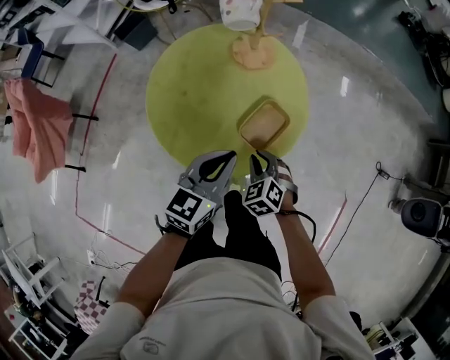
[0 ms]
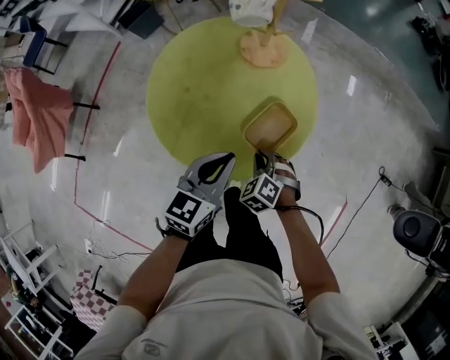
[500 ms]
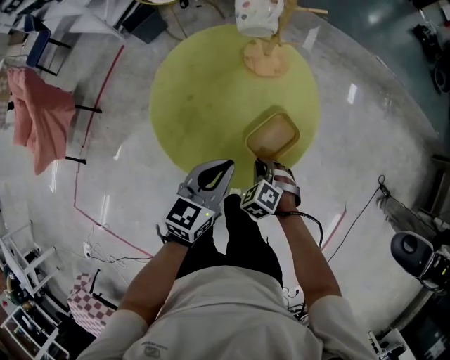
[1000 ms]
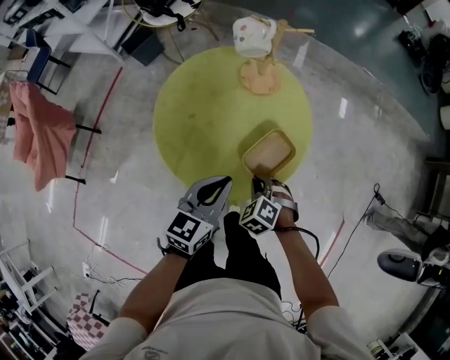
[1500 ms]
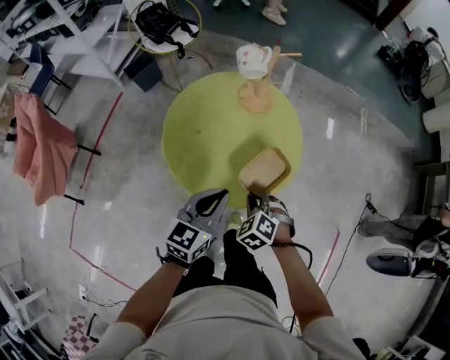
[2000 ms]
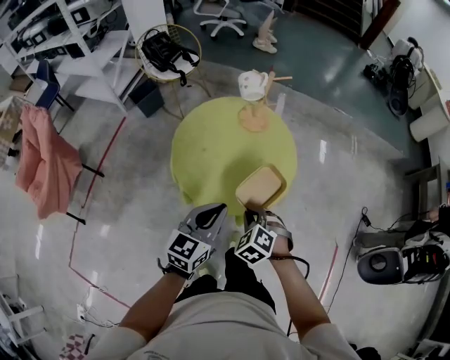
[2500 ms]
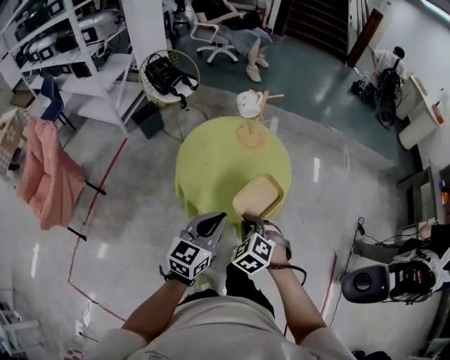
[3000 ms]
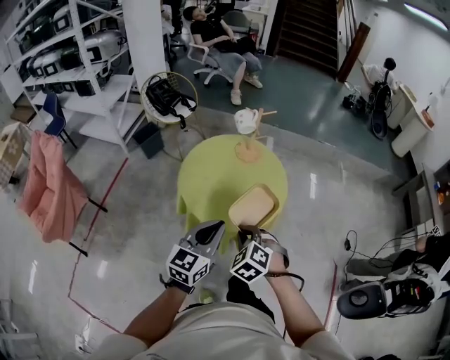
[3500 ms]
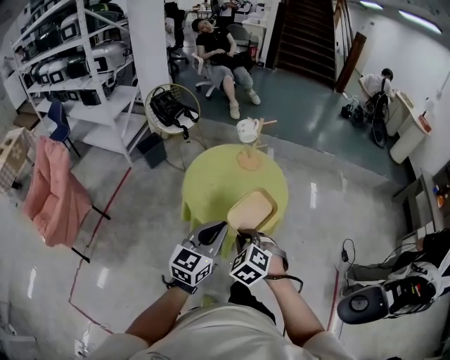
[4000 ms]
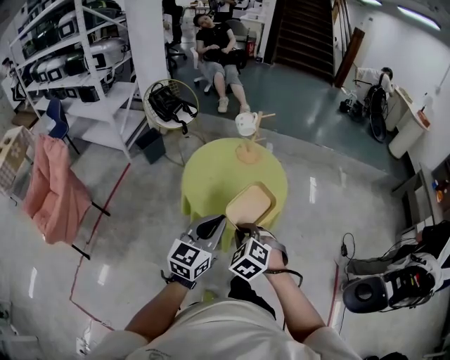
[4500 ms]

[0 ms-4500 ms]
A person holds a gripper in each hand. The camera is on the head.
0 ms to 2000 ms: The right gripper moves upward, roughly 5 cm; the left gripper is displaced to the left by roughly 5 cm.
2000 ms to 4500 ms: The right gripper is displaced upward, backward and to the left by approximately 25 cm, while the left gripper goes roughly 20 cm backward and upward.

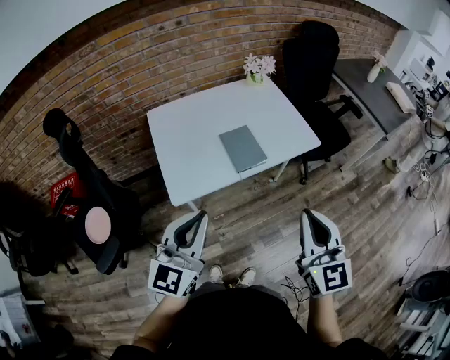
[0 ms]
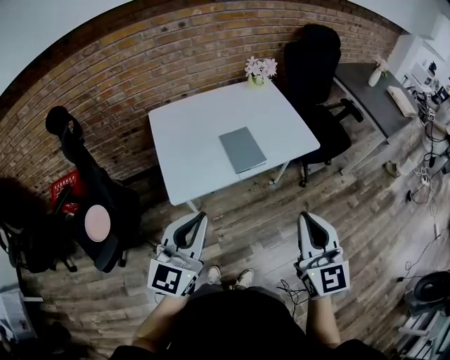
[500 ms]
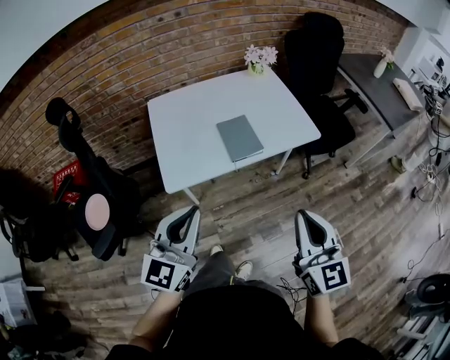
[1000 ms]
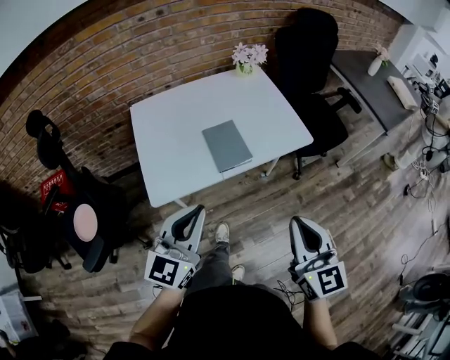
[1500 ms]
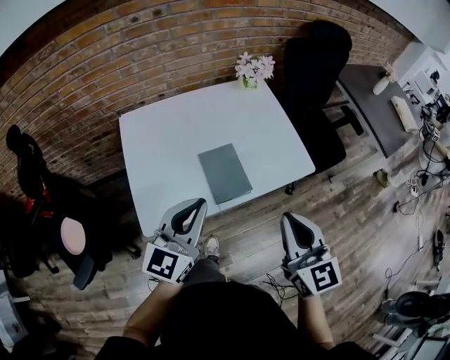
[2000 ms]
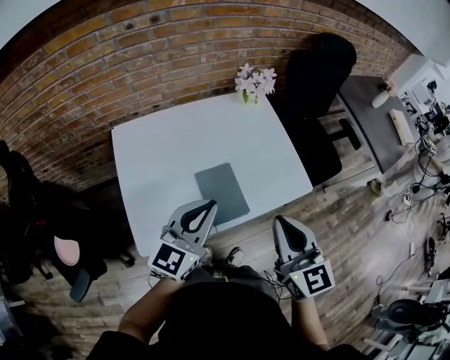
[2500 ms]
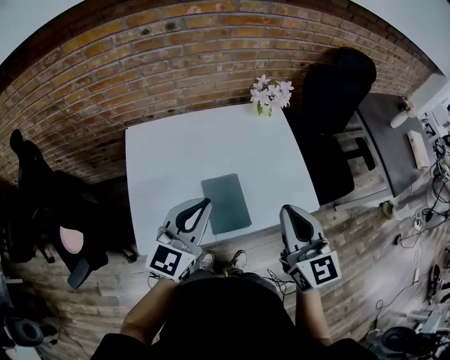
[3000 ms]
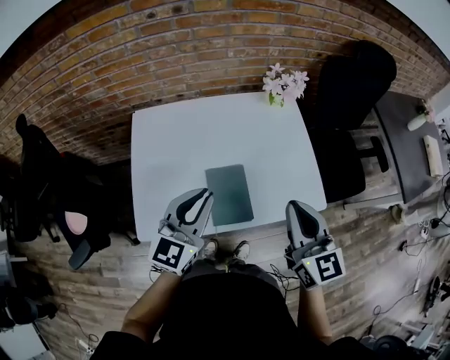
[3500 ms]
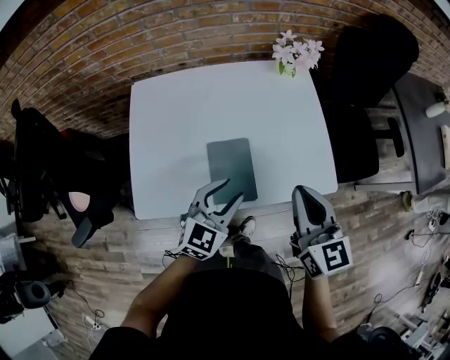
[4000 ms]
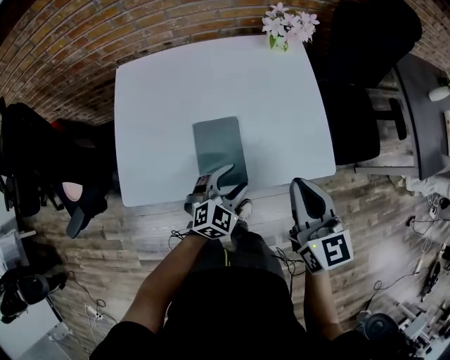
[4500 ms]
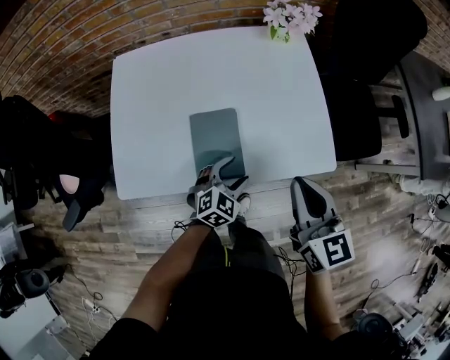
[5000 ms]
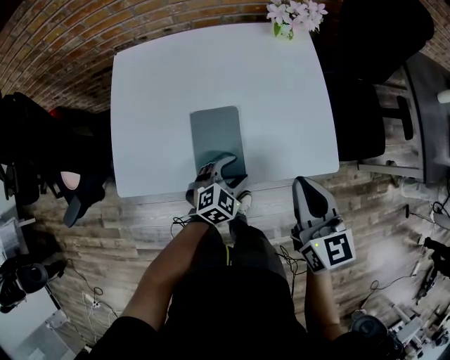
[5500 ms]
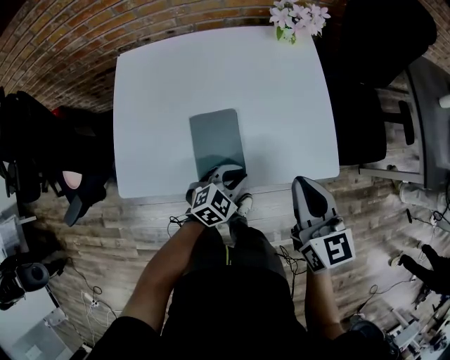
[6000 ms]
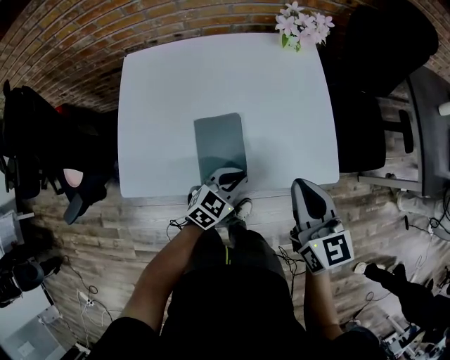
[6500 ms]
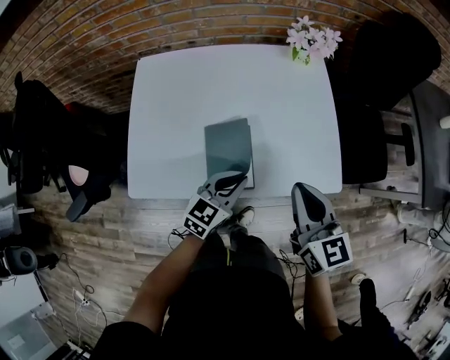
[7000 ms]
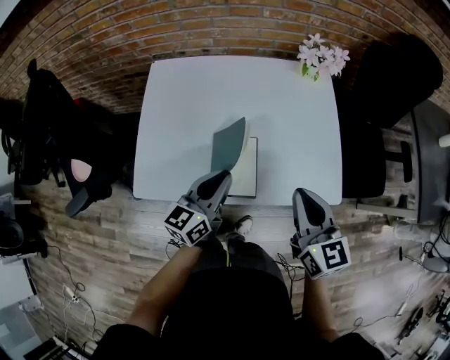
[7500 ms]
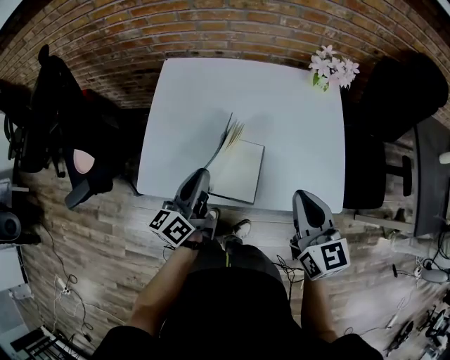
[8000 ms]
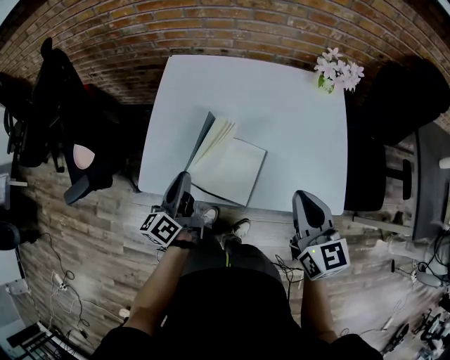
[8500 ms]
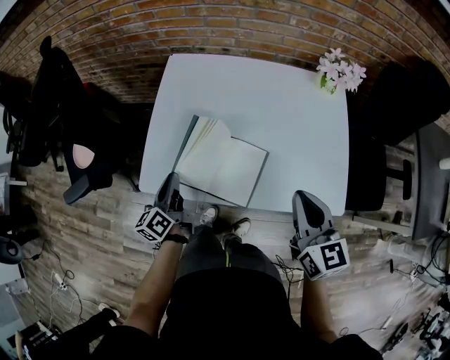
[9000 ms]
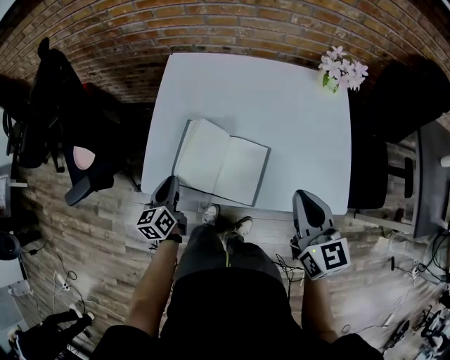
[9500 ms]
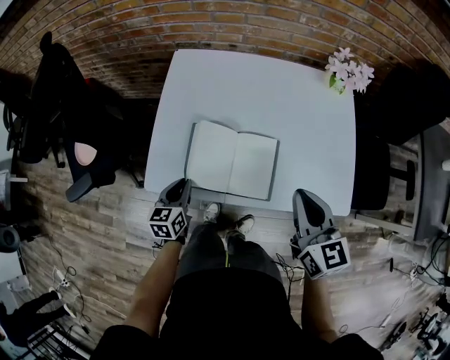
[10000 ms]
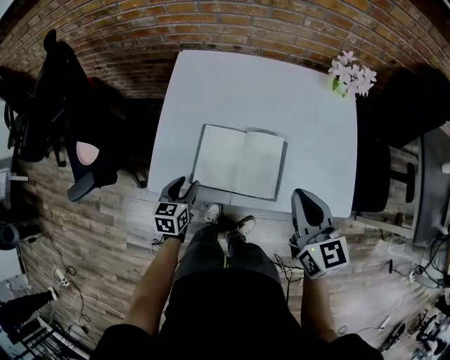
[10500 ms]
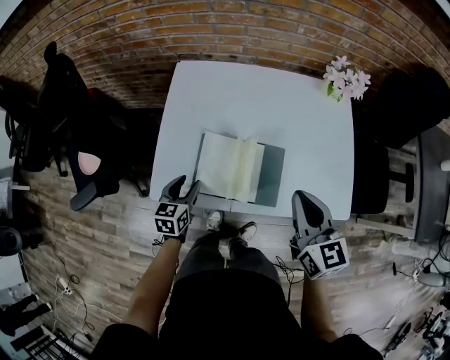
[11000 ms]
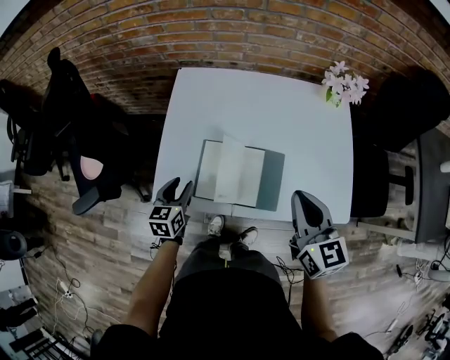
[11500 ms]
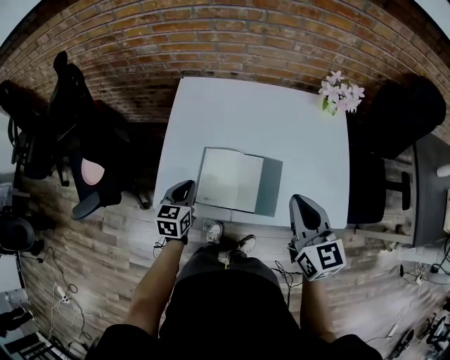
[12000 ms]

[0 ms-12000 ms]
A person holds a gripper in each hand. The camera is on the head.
0 ms to 2000 ms: Both grippers move forward, approximately 20 cm.
2000 ms to 4000 ms: The right gripper moves forward, roughly 20 cm. The left gripper moves downward, forward and to the right, about 20 cm, turns by approximately 20 degrees, and opens.
4000 ms to 6000 ms: The left gripper shifts roughly 20 cm downward and to the right, swivels approximately 20 degrees, and opens and closes again, while the right gripper is displaced downward by some 5 cm.
6000 ms to 8000 ms: The left gripper changes place by roughly 25 cm, and tips its fingers upward by some 40 degrees. Meanwhile the right gripper shifts by some 5 cm.
8000 ms to 10000 ms: The left gripper heads downward and to the left, covering about 20 cm, and tilts its fingers approximately 30 degrees downward; the right gripper changes place by some 5 cm.
10000 ms to 12000 ms: The left gripper moves forward and upward, some 10 cm, and opens, then closes once more.

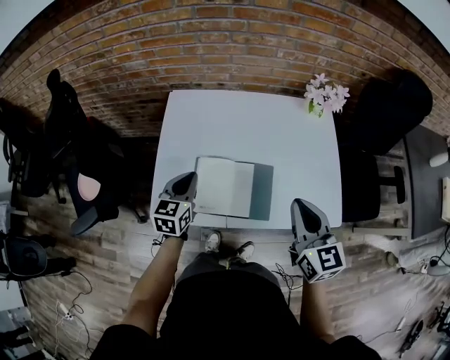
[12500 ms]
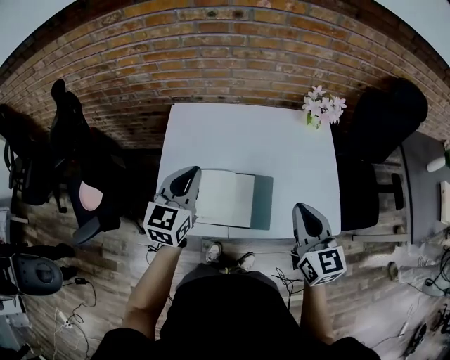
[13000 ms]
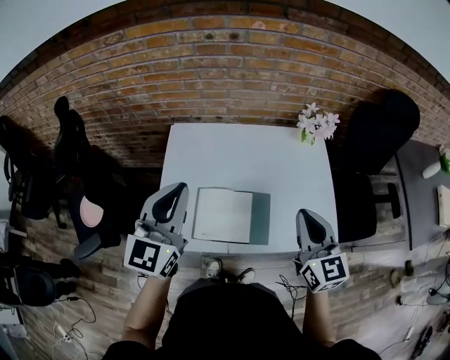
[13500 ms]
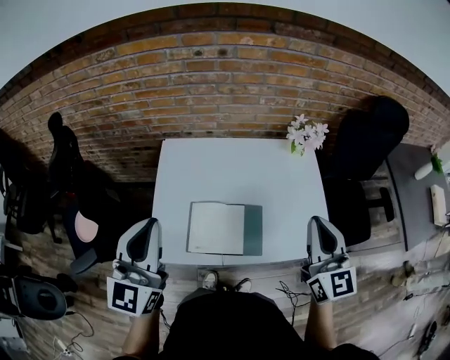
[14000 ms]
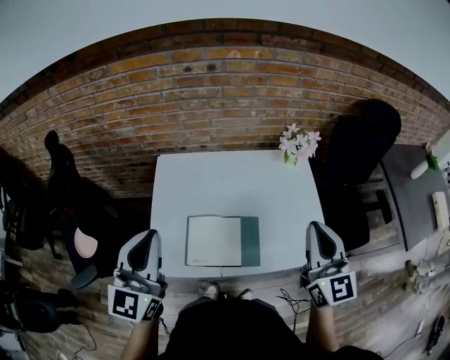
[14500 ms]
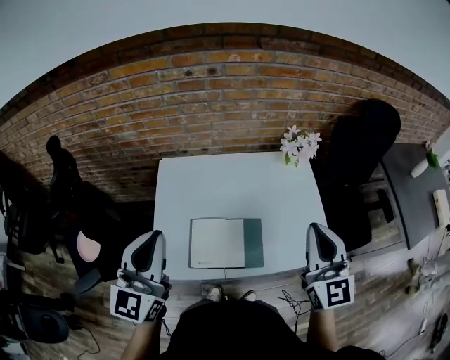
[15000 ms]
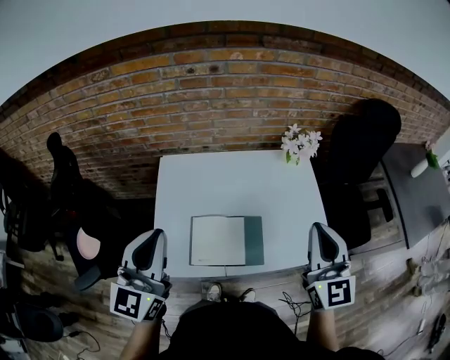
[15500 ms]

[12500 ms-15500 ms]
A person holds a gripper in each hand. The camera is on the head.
12500 ms to 14000 ms: The left gripper heads upward, covering approximately 30 cm, and tips its fingers upward by about 30 degrees. Meanwhile the right gripper is displaced upward by some 10 cm.
14000 ms to 15500 ms: The grippers make only small movements.

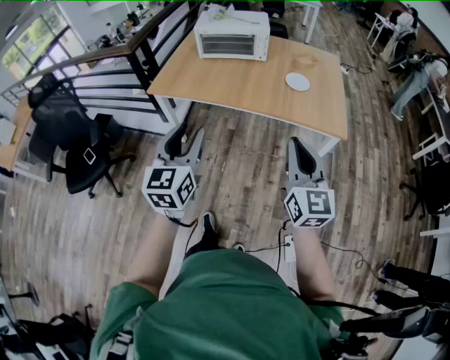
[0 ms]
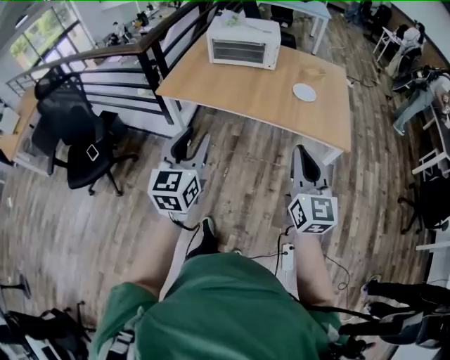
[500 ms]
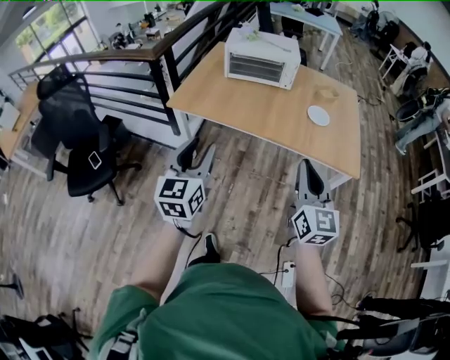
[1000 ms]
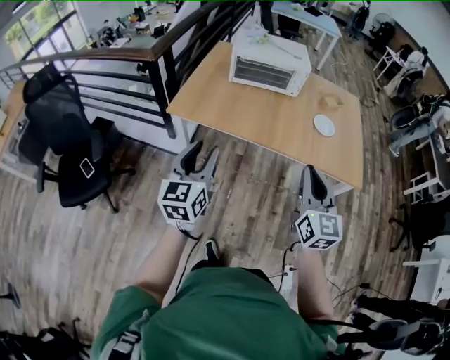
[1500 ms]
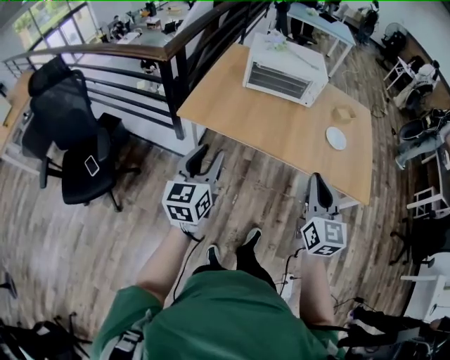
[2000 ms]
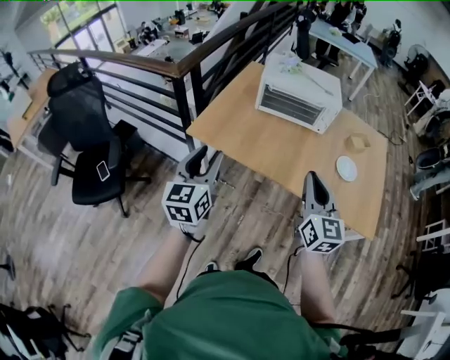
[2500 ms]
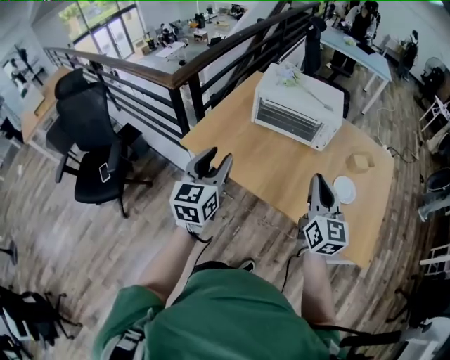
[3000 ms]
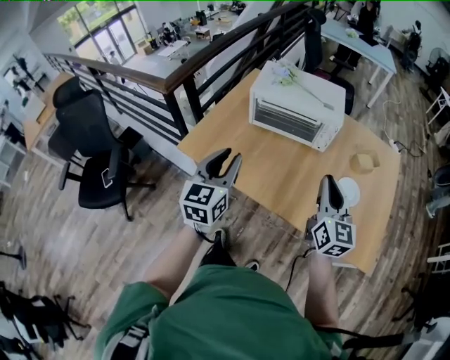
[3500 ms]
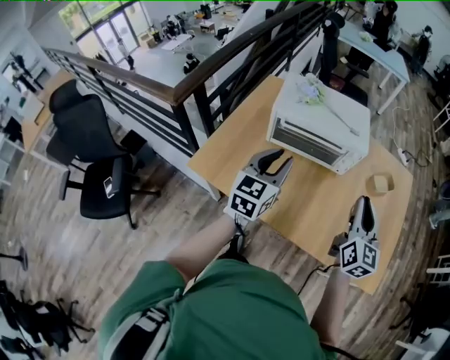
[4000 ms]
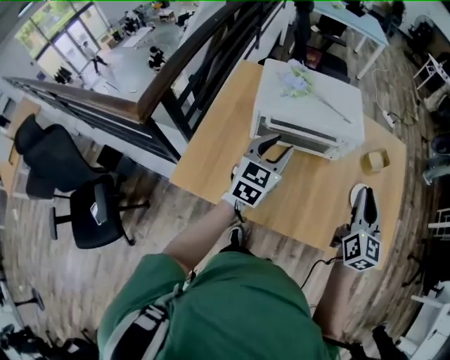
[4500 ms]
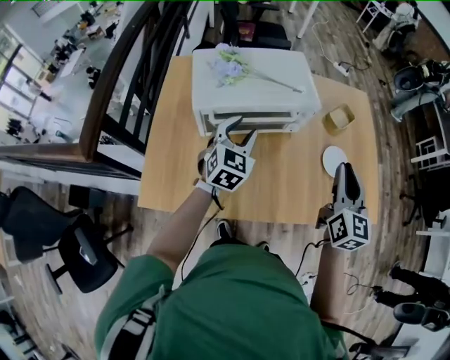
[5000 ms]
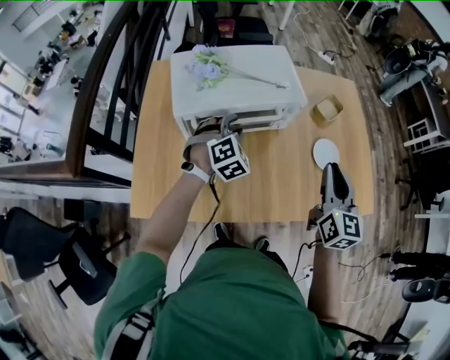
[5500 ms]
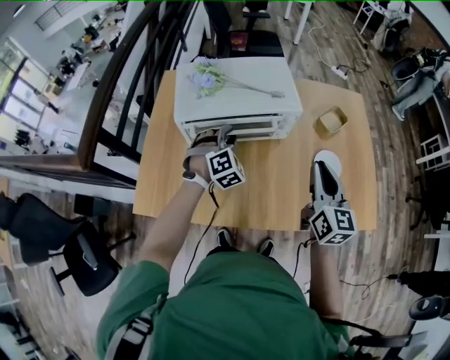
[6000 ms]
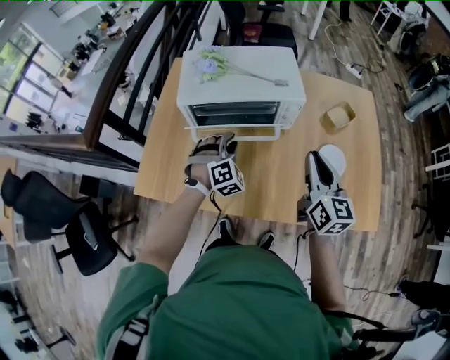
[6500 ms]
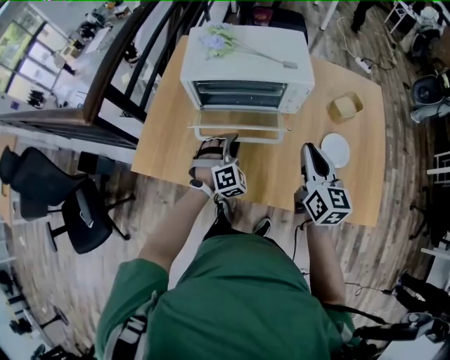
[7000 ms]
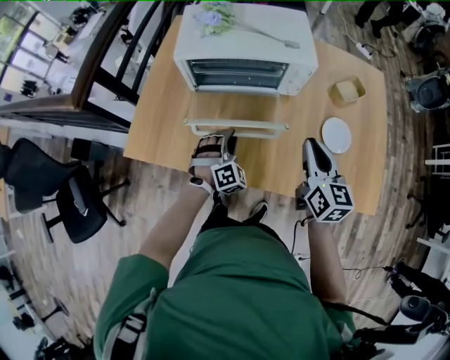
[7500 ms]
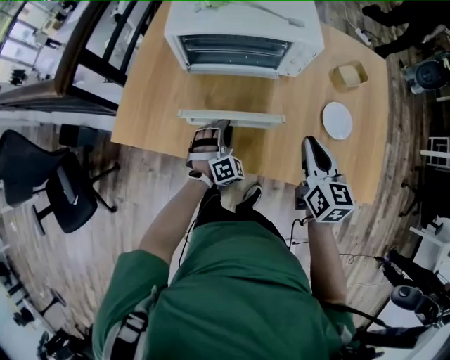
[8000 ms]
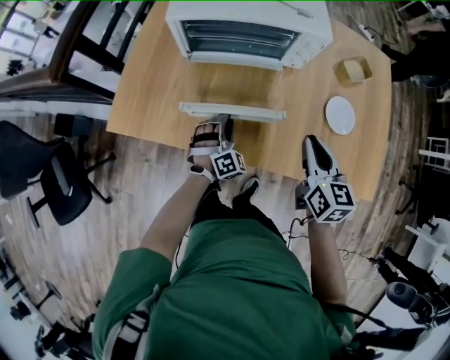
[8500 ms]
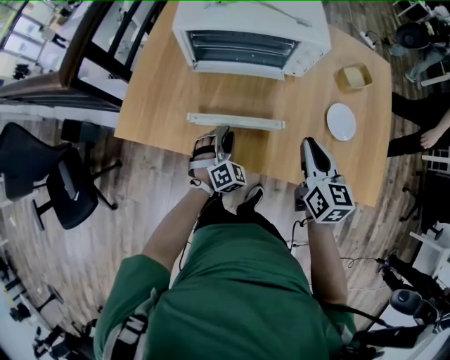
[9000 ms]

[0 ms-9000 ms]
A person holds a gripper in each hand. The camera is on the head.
0 ms to 2000 ms: The right gripper travels forward and to the left by some 25 cm. Meanwhile the left gripper heads to the left and forward, covering about 30 cm.
2000 ms to 4500 ms: The pair of grippers is taken roughly 50 cm. The left gripper swivels some 20 degrees.
4500 ms to 7000 ms: The left gripper travels downward and to the right by some 20 cm, and twists roughly 60 degrees clockwise, seen from behind. Meanwhile the right gripper shifts approximately 5 cm downward.
7000 ms to 9000 ms: The left gripper shifts some 10 cm downward and backward. The right gripper travels downward by approximately 5 cm.
